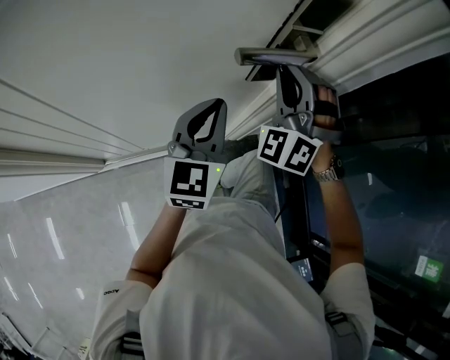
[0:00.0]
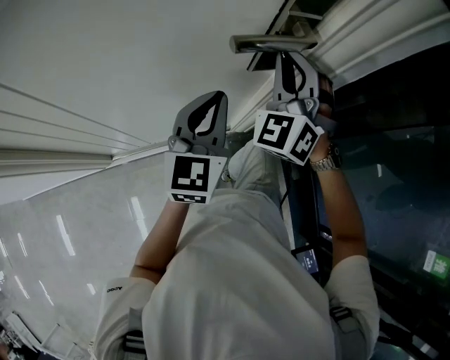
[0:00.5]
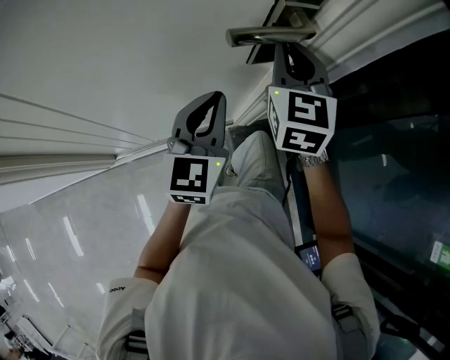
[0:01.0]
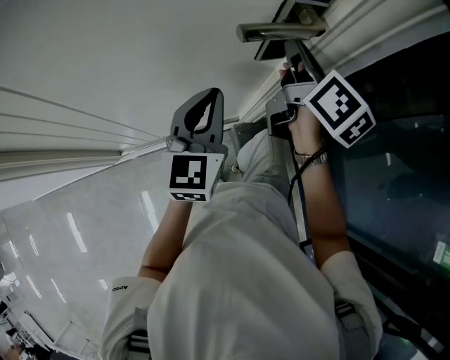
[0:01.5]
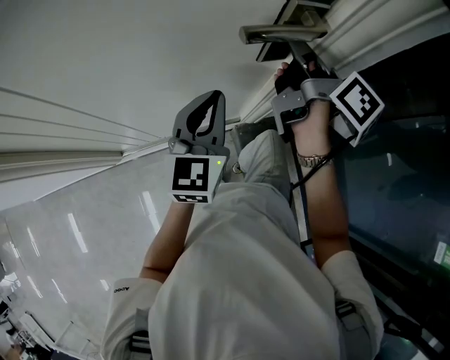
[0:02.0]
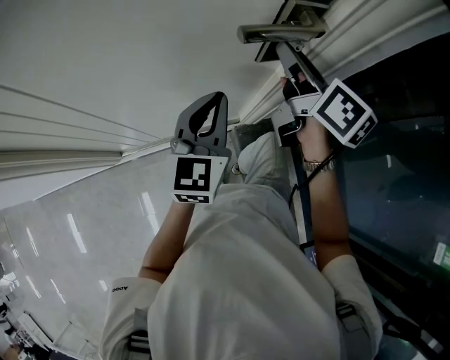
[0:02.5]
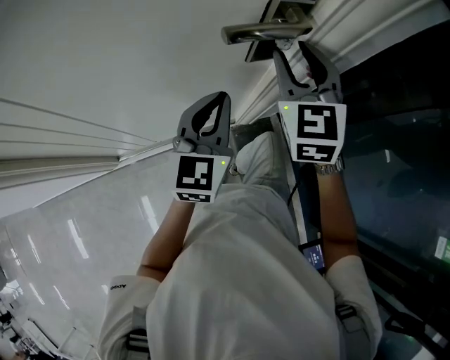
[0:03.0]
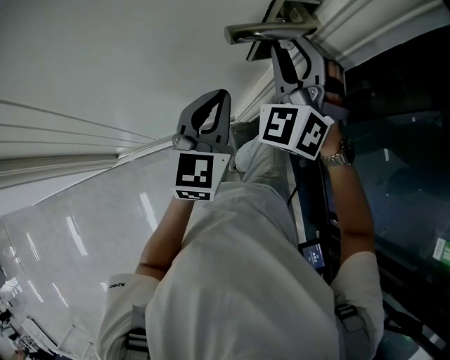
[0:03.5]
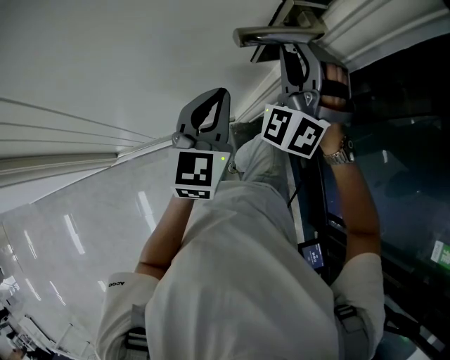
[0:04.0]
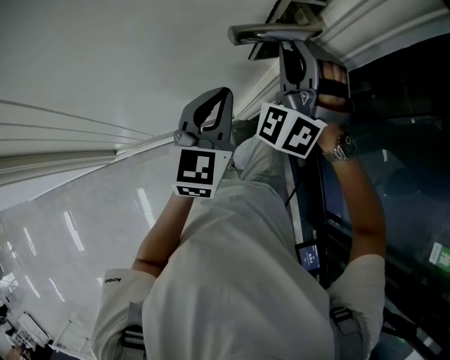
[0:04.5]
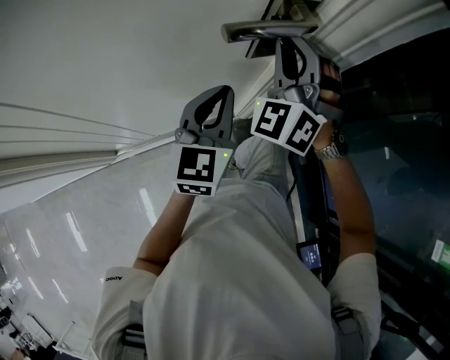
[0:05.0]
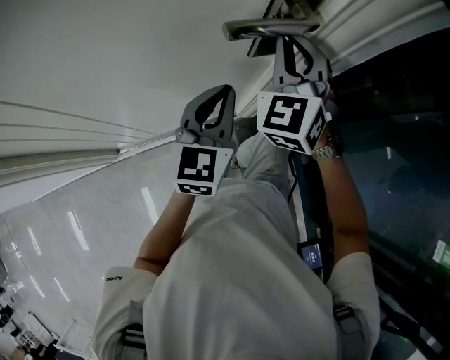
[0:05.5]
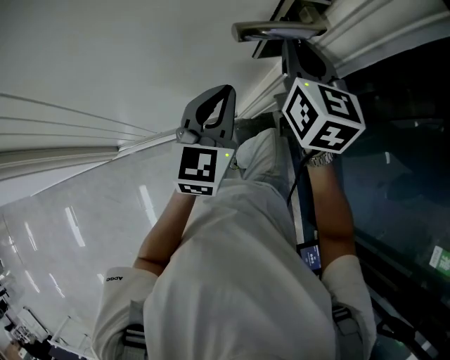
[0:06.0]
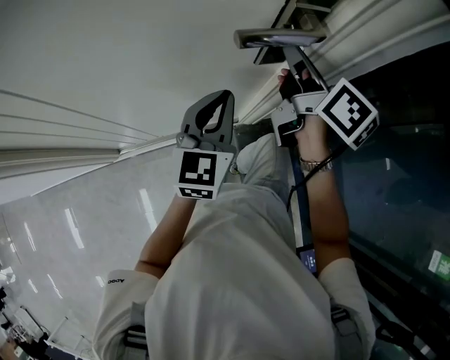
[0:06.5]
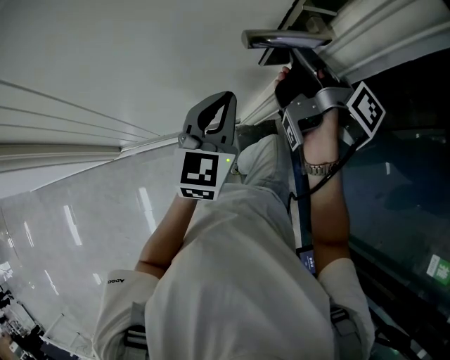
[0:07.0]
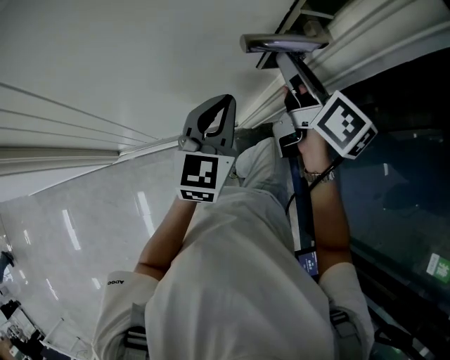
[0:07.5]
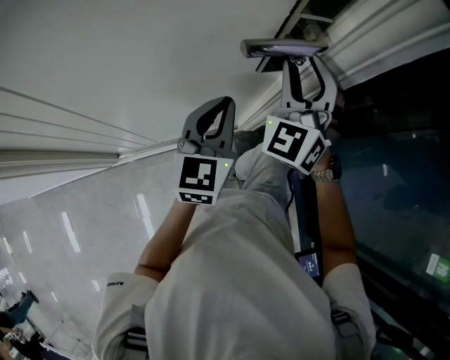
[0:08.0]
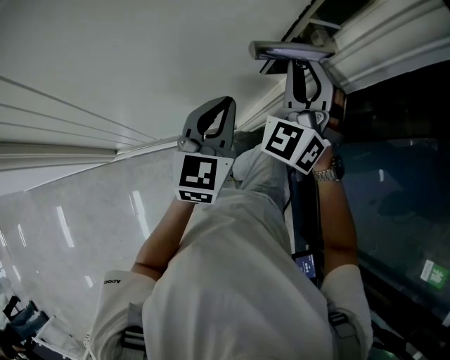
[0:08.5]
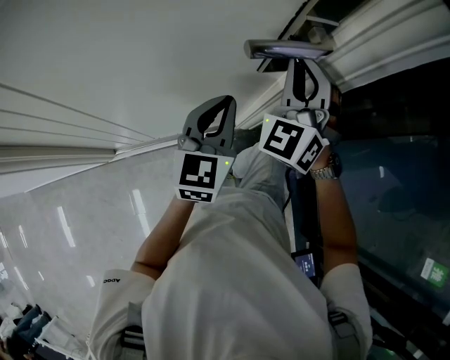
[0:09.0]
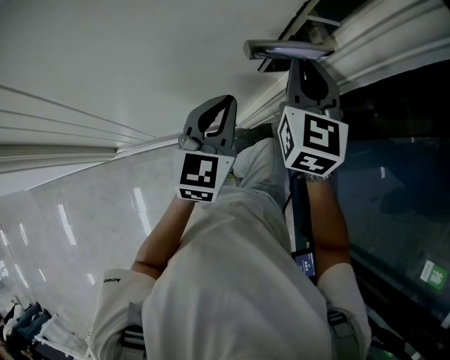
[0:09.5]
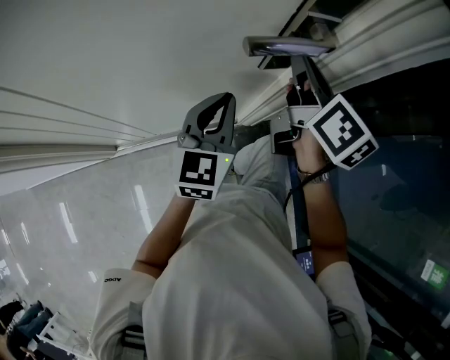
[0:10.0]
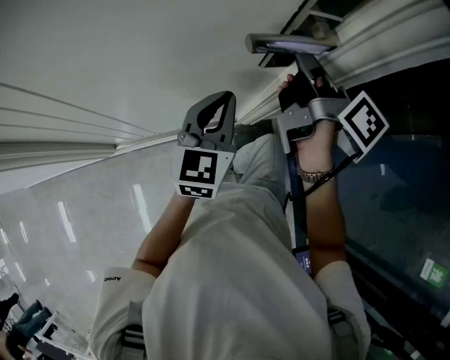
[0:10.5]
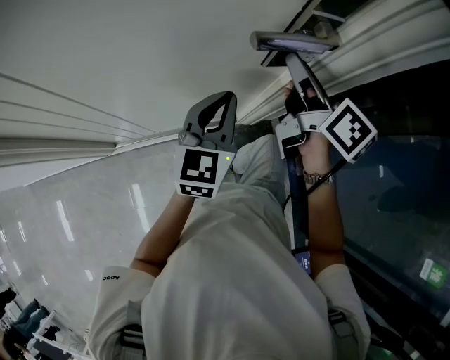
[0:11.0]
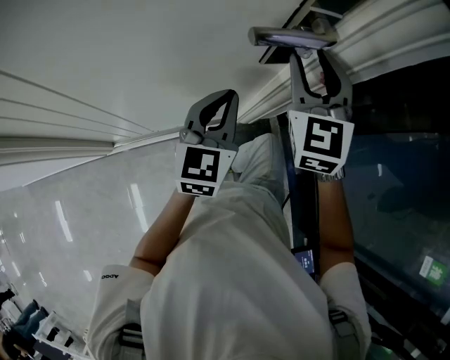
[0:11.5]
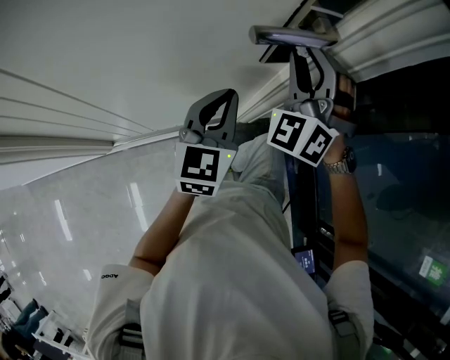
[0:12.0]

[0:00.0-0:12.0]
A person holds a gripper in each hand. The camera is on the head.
0:00.0 to 0:02.0: The right gripper twists some 140 degrees clockwise, seen from behind.
0:02.0 to 0:04.0: The right gripper twists approximately 140 degrees counterclockwise, seen from behind, and opens its fingers.
0:04.0 to 0:06.0: The right gripper rotates around the line of its fingers by approximately 80 degrees, clockwise from behind, and closes.
0:06.0 to 0:08.0: The right gripper rotates around the line of its fingers by roughly 50 degrees, counterclockwise from behind, and opens.
0:08.0 to 0:10.0: The right gripper twists some 80 degrees clockwise, seen from behind, and closes.
0:10.0 to 0:12.0: The right gripper rotates around the line of its fingers by approximately 100 degrees, counterclockwise from behind, and opens its fingers.

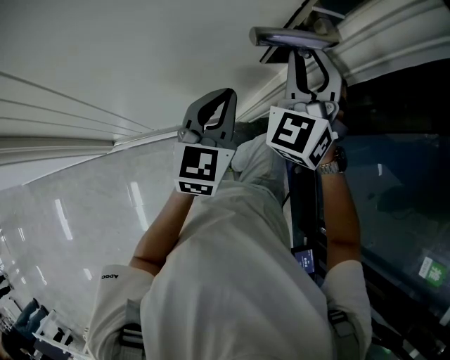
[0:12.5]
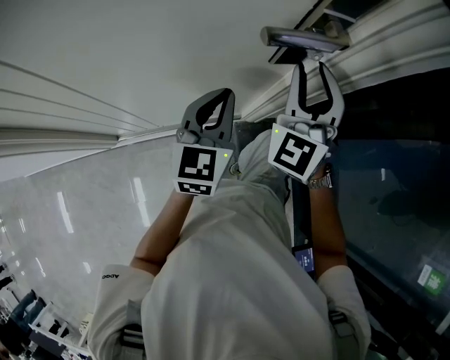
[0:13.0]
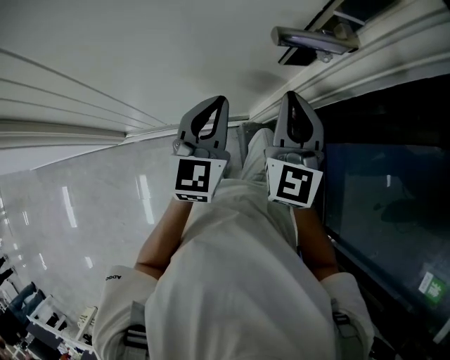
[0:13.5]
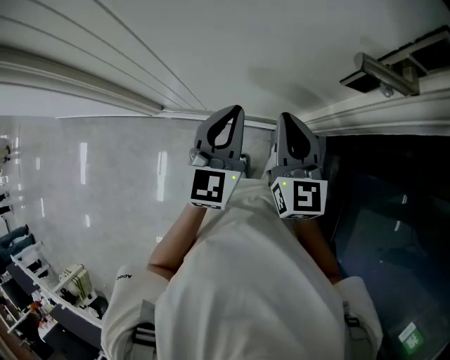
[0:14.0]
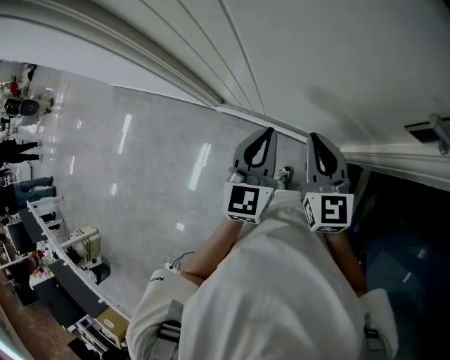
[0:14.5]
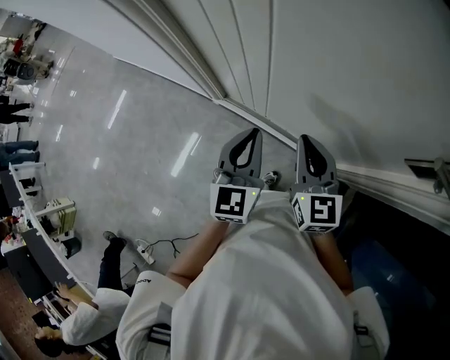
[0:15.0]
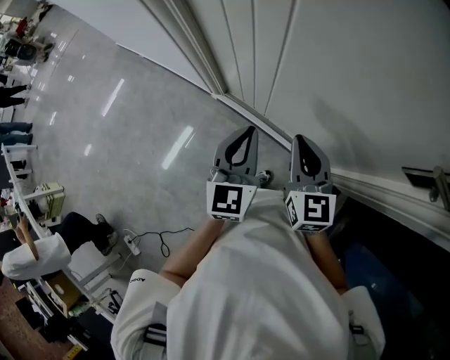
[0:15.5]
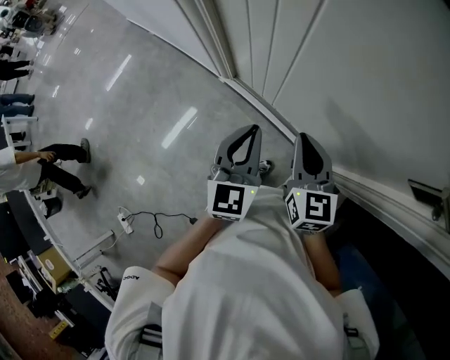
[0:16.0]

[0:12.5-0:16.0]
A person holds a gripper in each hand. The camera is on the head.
0:12.5 to 0:14.5: The right gripper shifts by some 30 cm, changes its angle by approximately 70 degrees, and closes up. Meanwhile the left gripper changes place by some 25 cm, and changes its angle by approximately 40 degrees.
0:14.5 to 0:16.0: The grippers both shift to the left by about 5 cm.

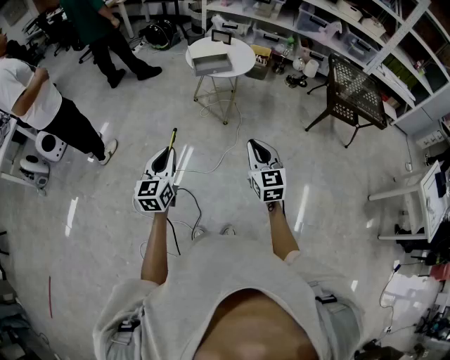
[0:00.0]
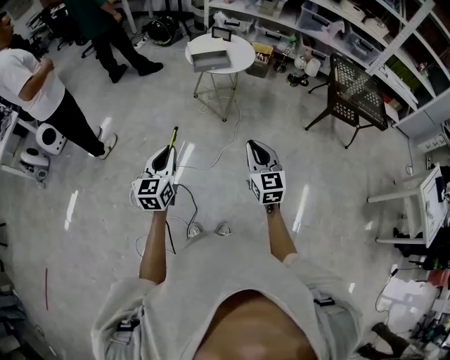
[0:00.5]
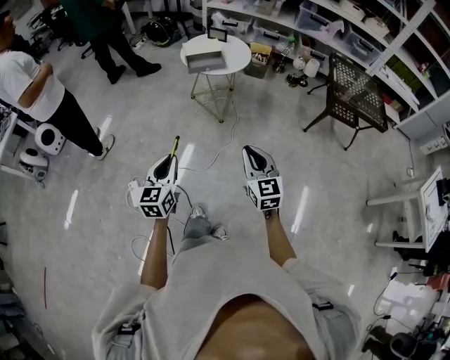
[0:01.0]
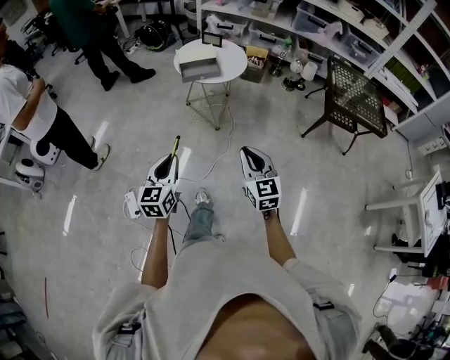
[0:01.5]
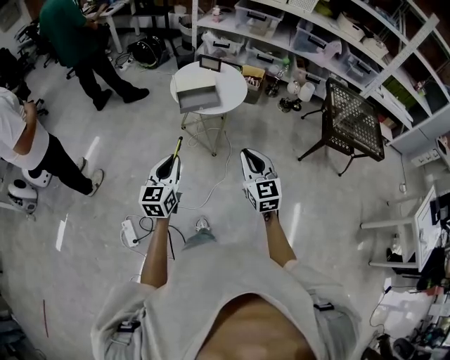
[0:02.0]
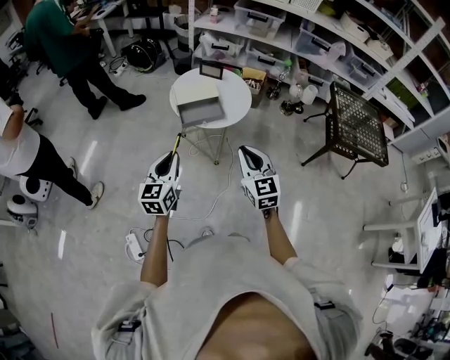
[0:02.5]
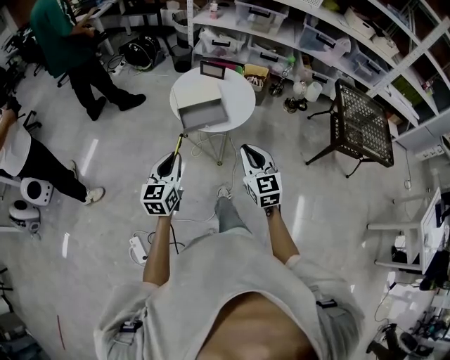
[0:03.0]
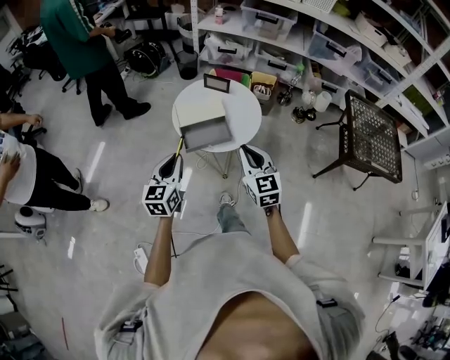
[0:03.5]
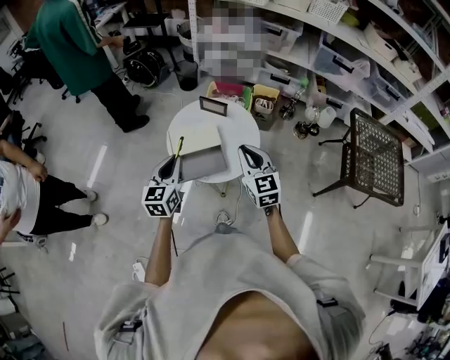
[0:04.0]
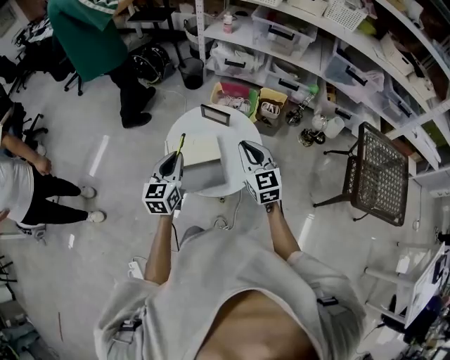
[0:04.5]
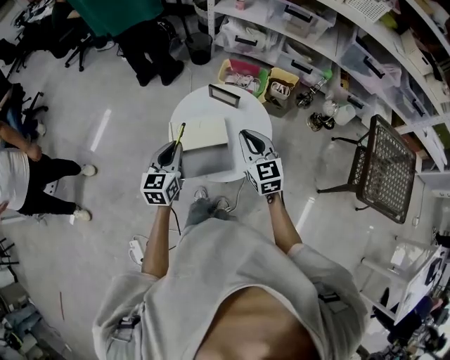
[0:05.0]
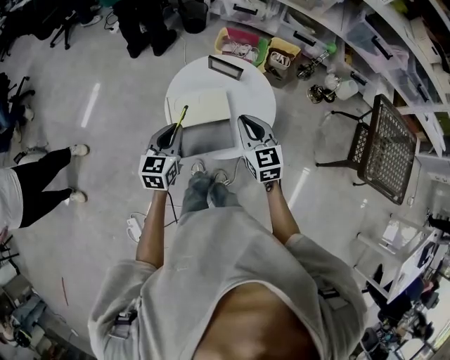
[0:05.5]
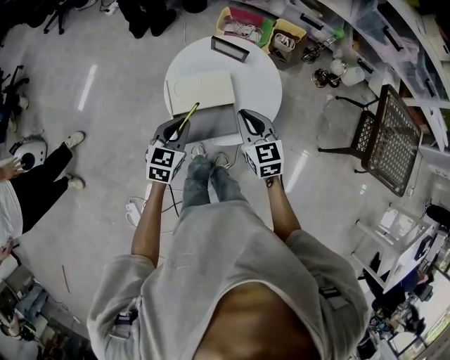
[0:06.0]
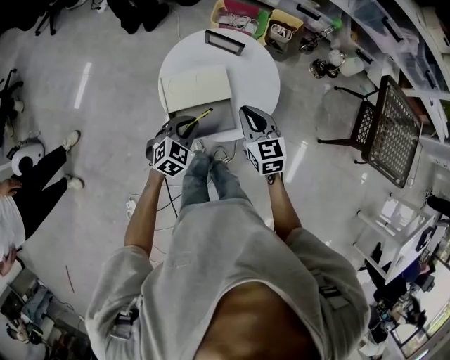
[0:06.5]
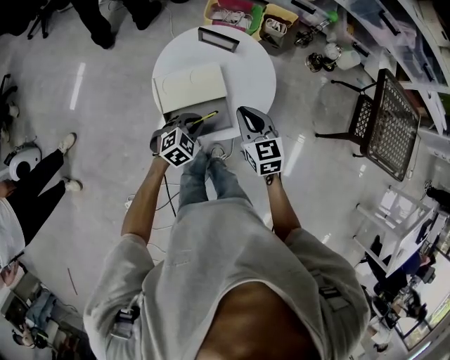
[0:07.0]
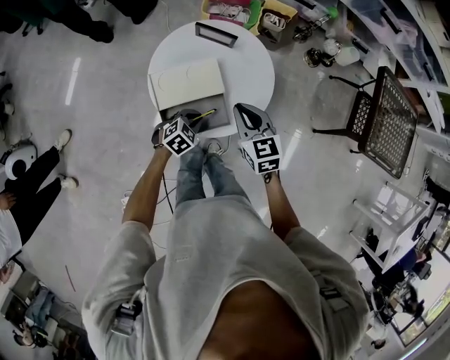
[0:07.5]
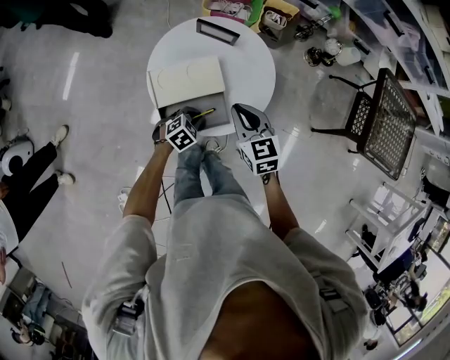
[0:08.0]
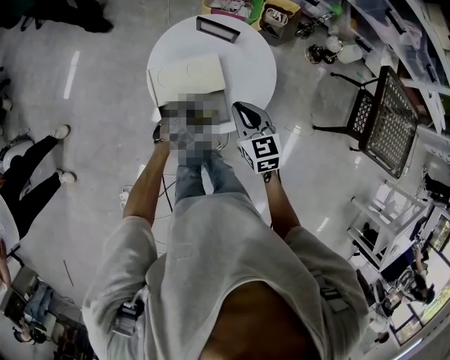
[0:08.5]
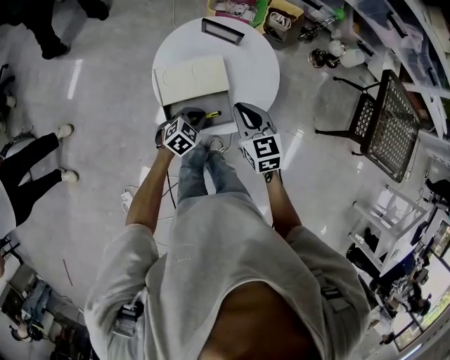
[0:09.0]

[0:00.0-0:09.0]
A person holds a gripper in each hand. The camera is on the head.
0:00.0 to 0:02.0: The two grippers go approximately 20 cm forward.
0:02.0 to 0:04.5: Both grippers are carried forward, some 50 cm.
0:04.5 to 0:07.0: The right gripper heads downward, covering approximately 10 cm; the left gripper shifts about 20 cm downward, and angles its fingers downward, by roughly 40 degrees.
0:07.0 to 0:09.0: The left gripper opens, then closes again.

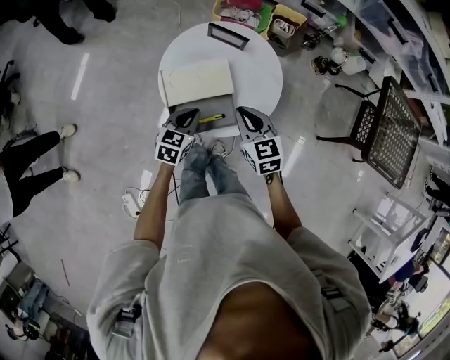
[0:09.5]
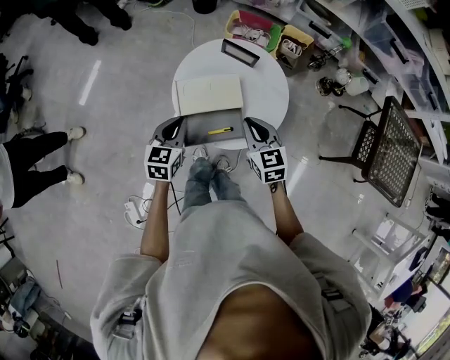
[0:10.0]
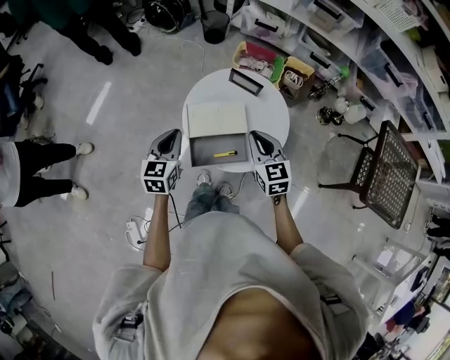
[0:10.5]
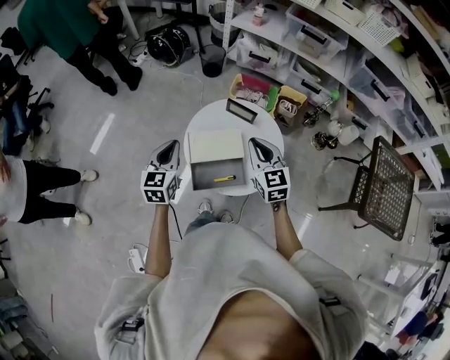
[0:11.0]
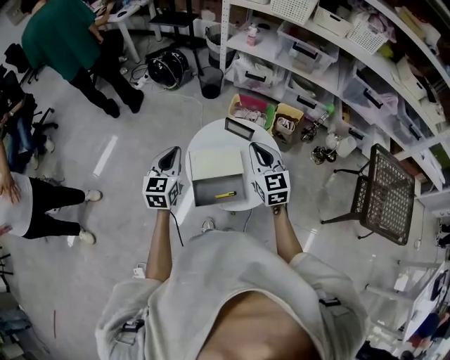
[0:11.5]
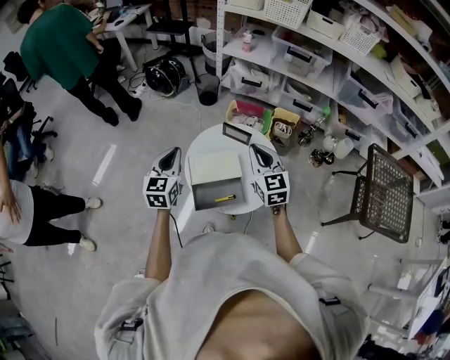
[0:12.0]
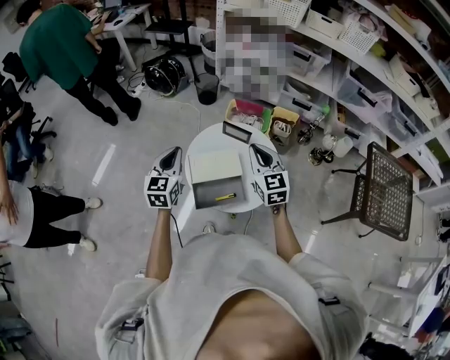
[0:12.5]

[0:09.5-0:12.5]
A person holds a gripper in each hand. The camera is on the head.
0:09.5 to 0:11.0: The left gripper shifts roughly 20 cm upward and to the left, and changes its angle by roughly 30 degrees, while the right gripper goes roughly 15 cm upward and forward.
0:11.0 to 0:12.5: The left gripper changes place by approximately 5 cm.
